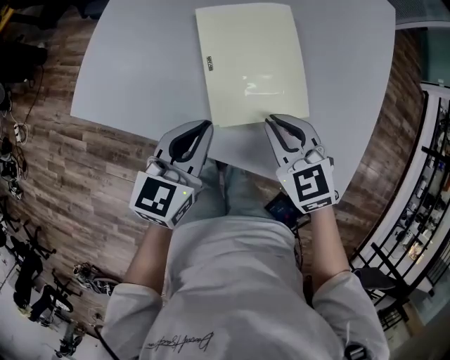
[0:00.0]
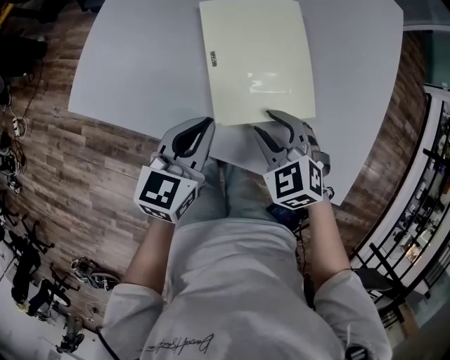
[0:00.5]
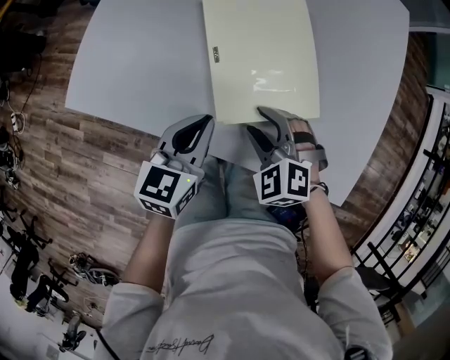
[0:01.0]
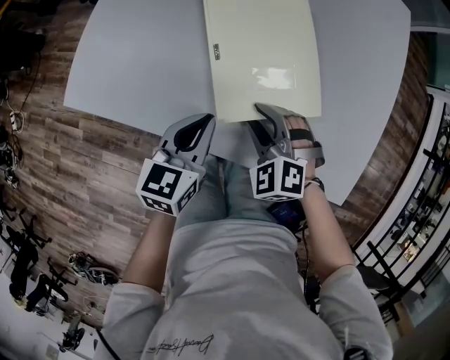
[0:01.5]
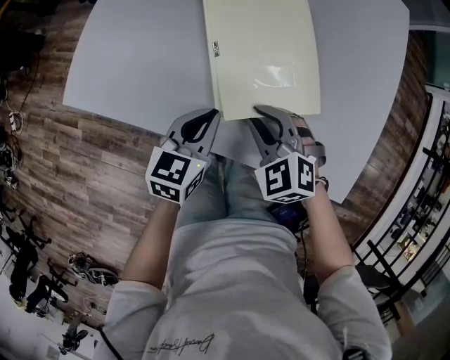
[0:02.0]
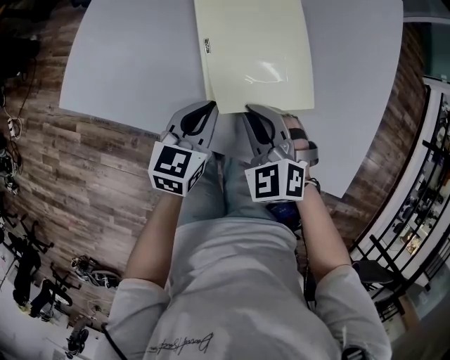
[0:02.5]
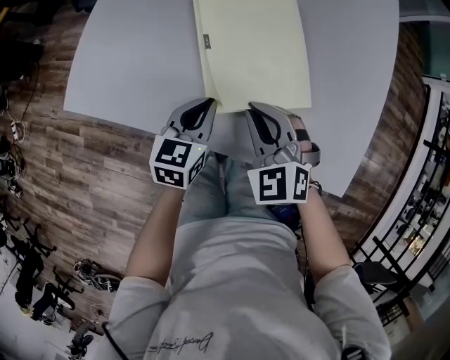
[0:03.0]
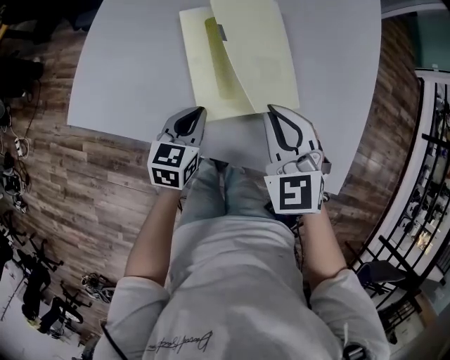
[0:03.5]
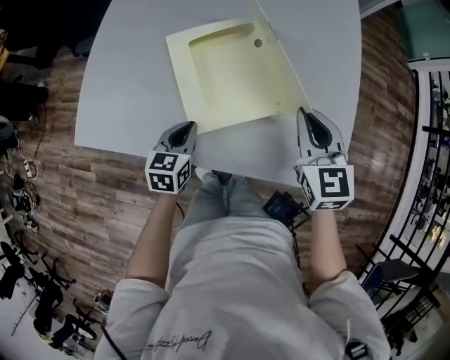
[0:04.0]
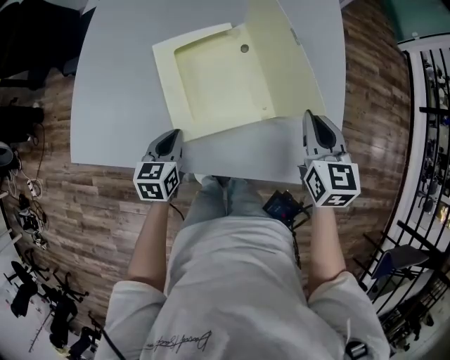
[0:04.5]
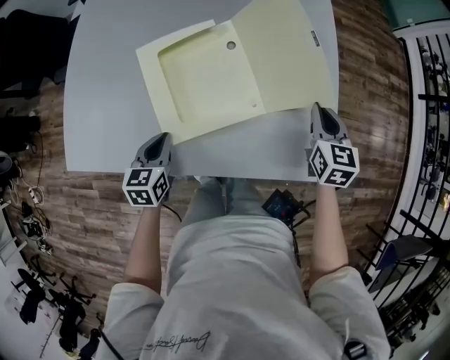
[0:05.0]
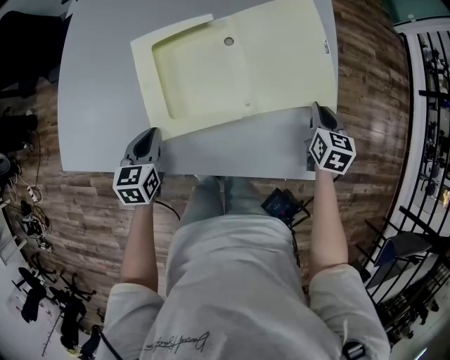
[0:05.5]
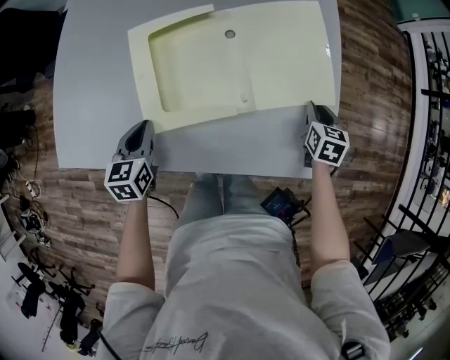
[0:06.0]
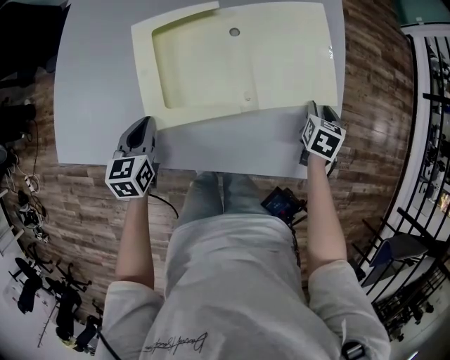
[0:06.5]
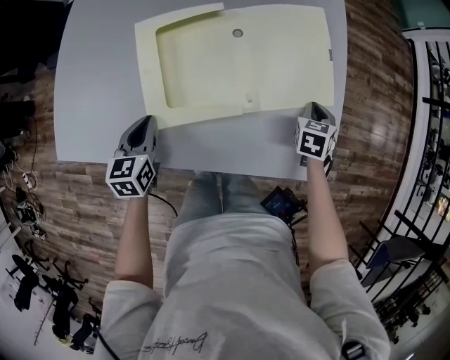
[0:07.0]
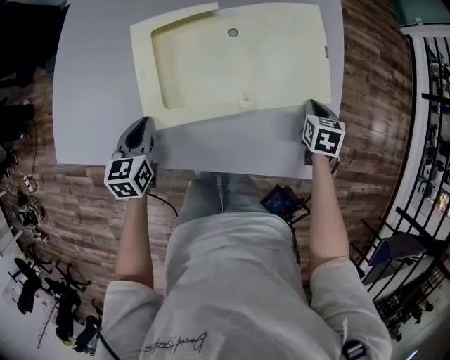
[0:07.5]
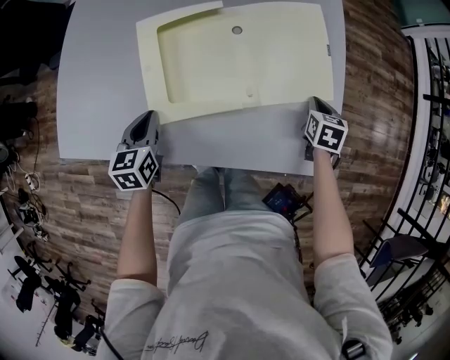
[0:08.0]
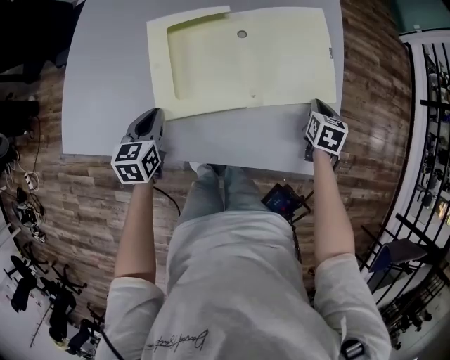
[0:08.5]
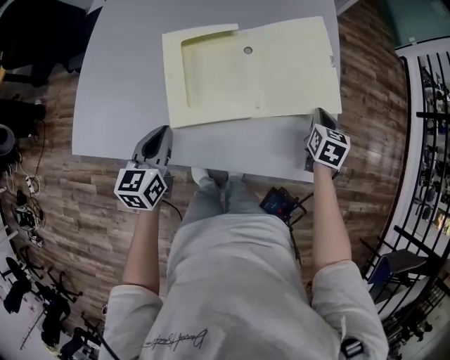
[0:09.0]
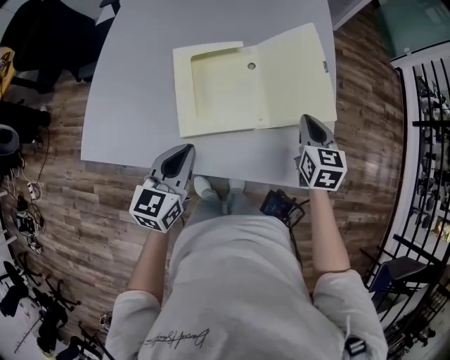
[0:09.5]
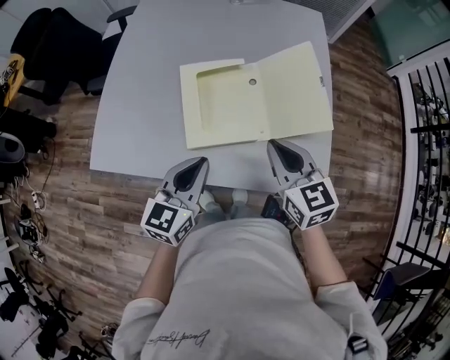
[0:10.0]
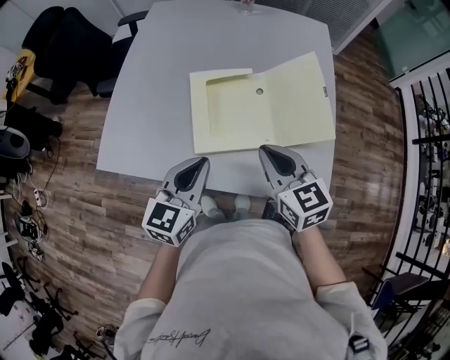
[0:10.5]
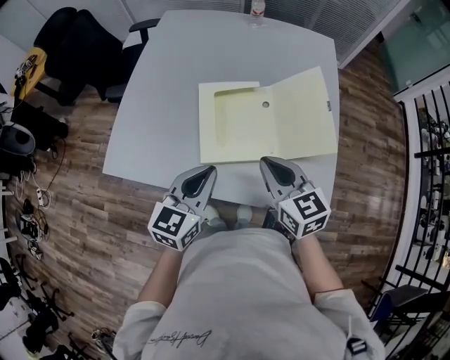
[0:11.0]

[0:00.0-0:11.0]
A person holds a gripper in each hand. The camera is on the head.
0:00.0 to 0:02.0: The grippers both shift downward by approximately 10 cm. The right gripper turns by approximately 20 degrees, and opens, then closes once more.
0:02.0 to 0:03.5: The right gripper goes roughly 10 cm upward, and swivels some 30 degrees.
0:03.5 to 0:05.5: The right gripper shifts about 30 cm to the right and downward, and rolls clockwise, seen from behind, by about 50 degrees.
0:05.5 to 0:07.5: The right gripper heads downward, covering about 5 cm, and opens, then closes again.
0:07.5 to 0:09.0: Both grippers travel together upward, roughly 10 cm.
0:09.0 to 0:11.0: The left gripper goes approximately 10 cm upward; the right gripper heads to the left and upward, covering about 30 cm, and changes its angle by some 50 degrees.

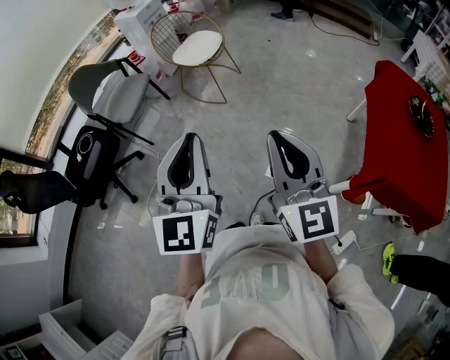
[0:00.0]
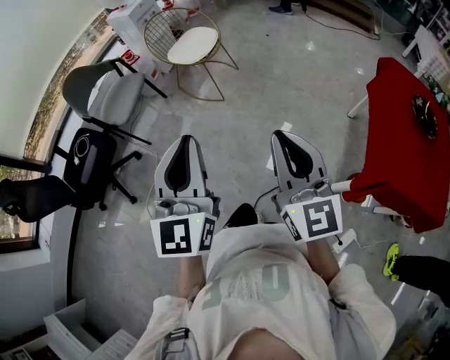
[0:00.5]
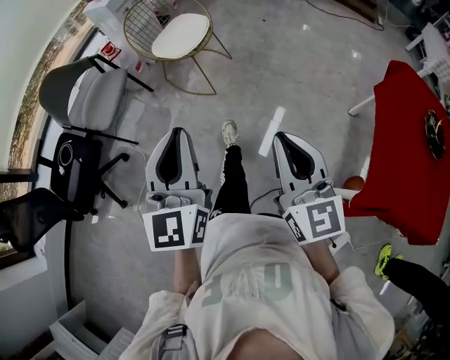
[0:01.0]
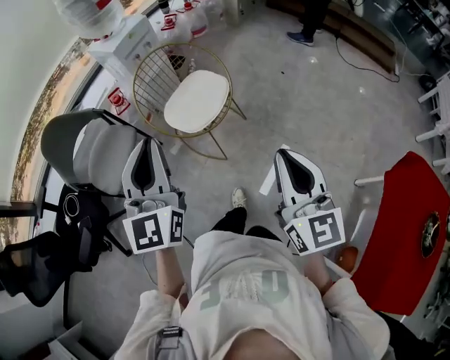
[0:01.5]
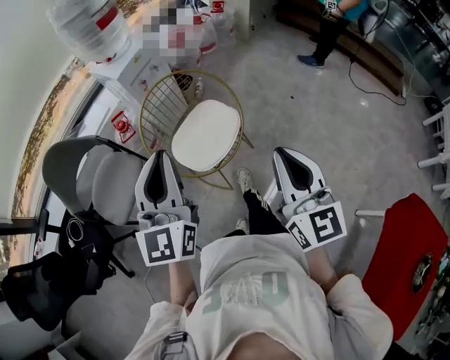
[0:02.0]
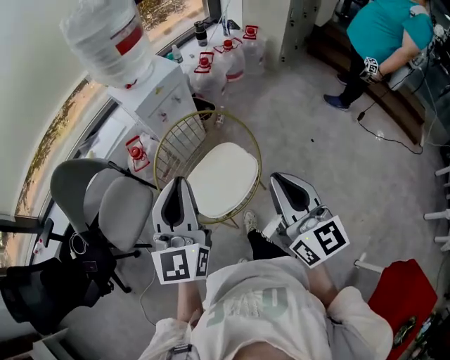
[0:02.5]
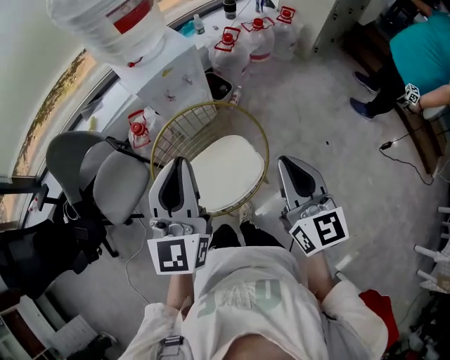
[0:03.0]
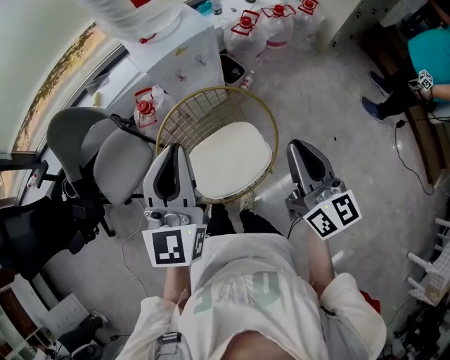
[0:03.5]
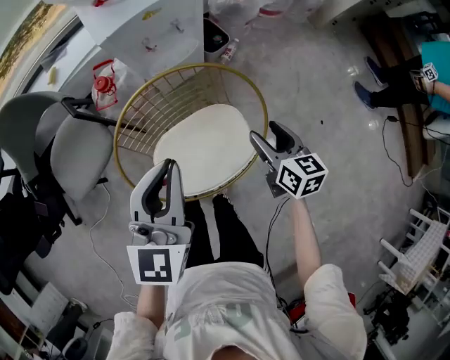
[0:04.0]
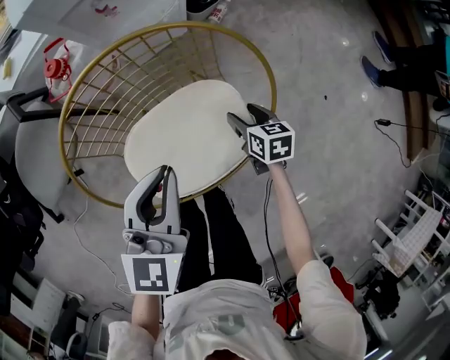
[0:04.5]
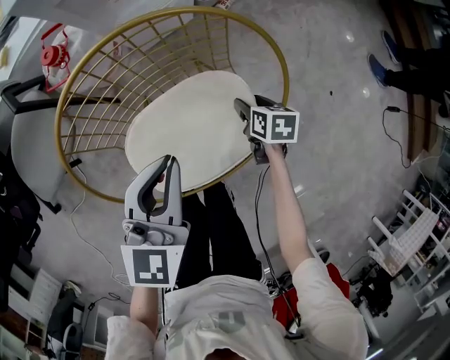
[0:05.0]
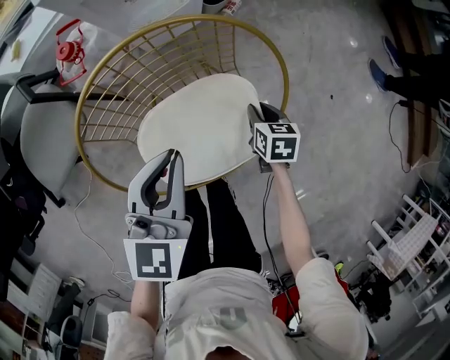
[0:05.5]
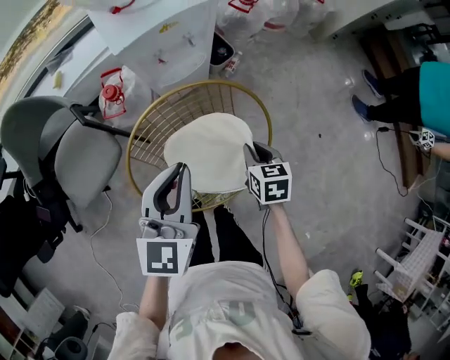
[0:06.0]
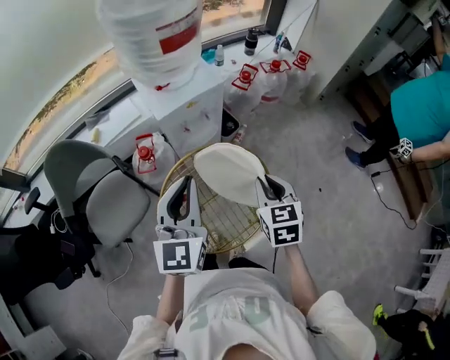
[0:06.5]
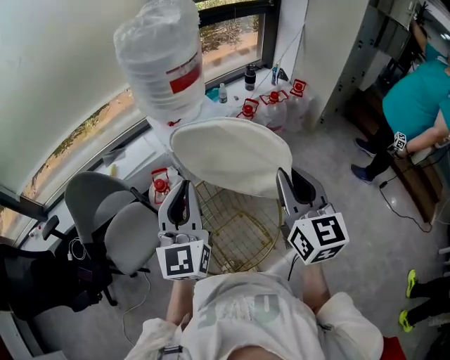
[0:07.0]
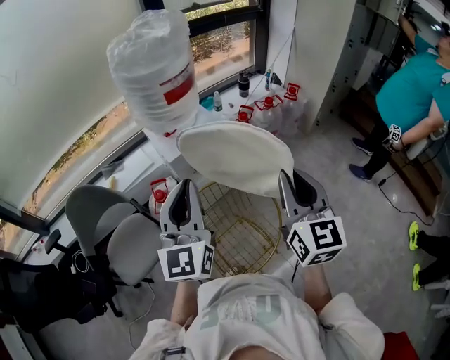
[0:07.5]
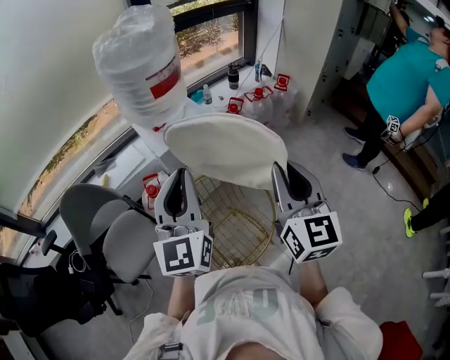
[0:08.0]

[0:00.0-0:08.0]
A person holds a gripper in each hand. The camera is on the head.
0:00.0 to 0:02.0: Both grippers are carried forward, roughly 70 cm.
0:02.0 to 0:04.0: The right gripper is displaced forward and downward by about 50 cm, tilts its fingers about 30 degrees downward, and opens; the left gripper shifts approximately 30 cm forward and downward, and swivels approximately 20 degrees.
0:04.0 to 0:06.0: The right gripper reaches approximately 30 cm downward, then returns, changes its angle by approximately 20 degrees, and closes its fingers. The left gripper travels downward and back again, approximately 20 cm each way.
0:06.0 to 0:08.0: The right gripper shifts approximately 40 cm upward, and tips its fingers upward by approximately 50 degrees. The left gripper heads upward, covering about 25 cm, and turns by approximately 30 degrees.

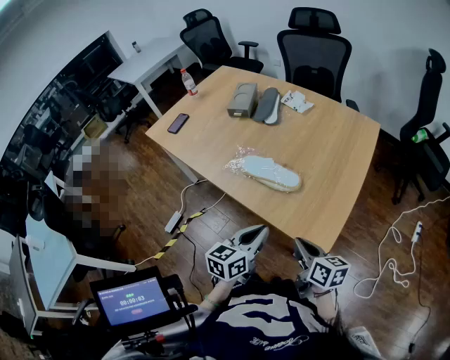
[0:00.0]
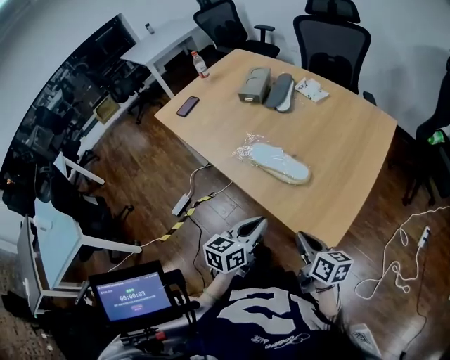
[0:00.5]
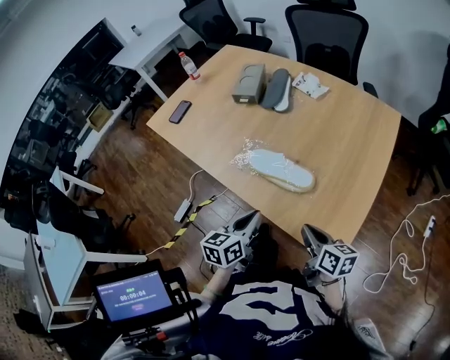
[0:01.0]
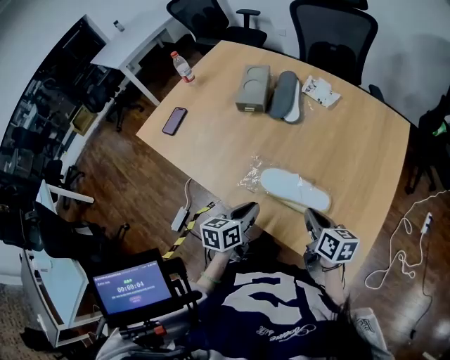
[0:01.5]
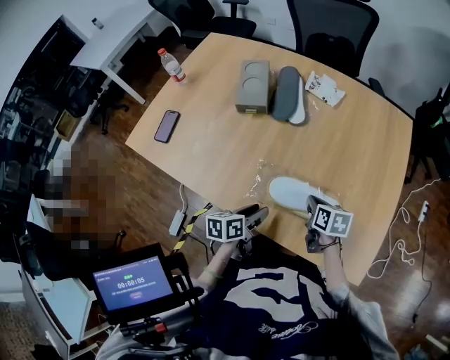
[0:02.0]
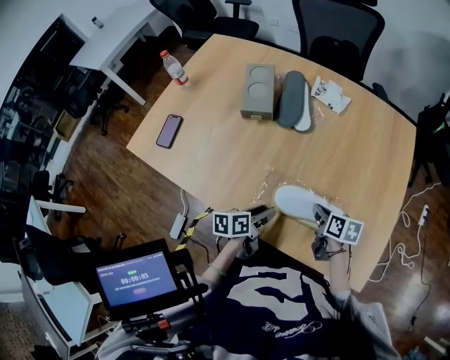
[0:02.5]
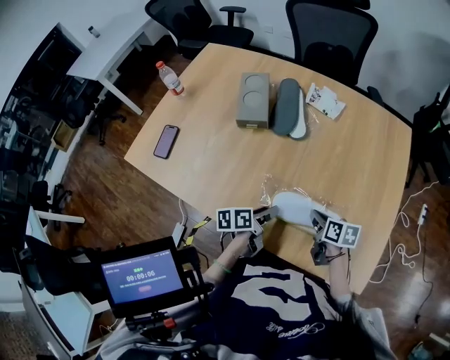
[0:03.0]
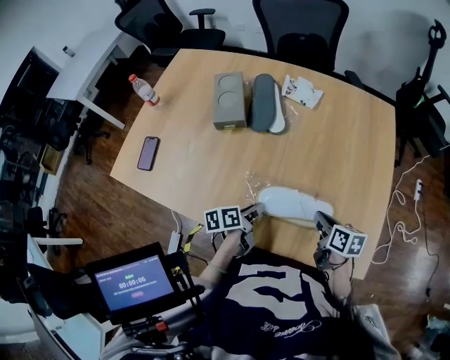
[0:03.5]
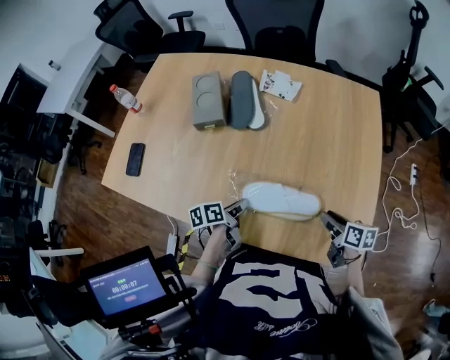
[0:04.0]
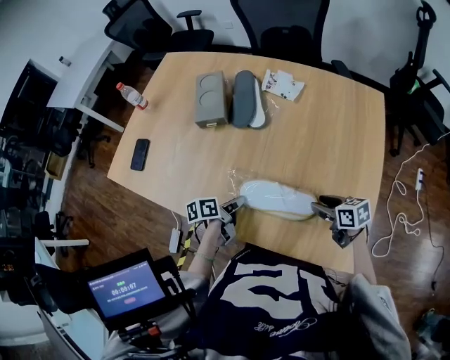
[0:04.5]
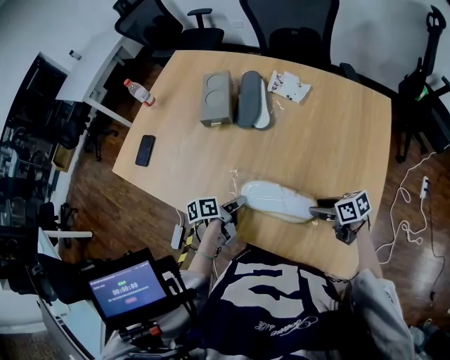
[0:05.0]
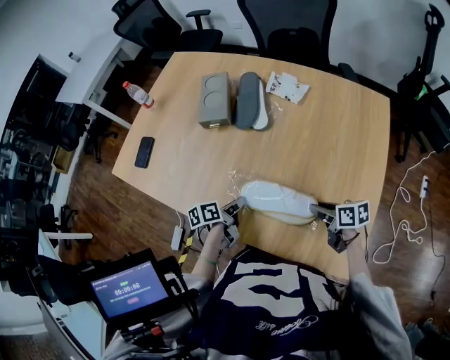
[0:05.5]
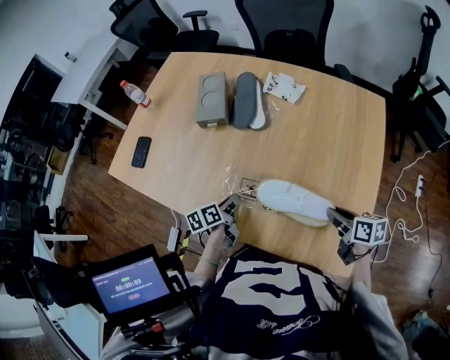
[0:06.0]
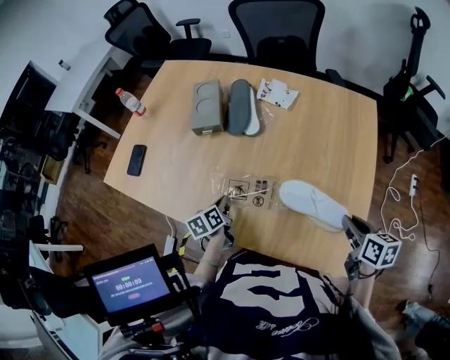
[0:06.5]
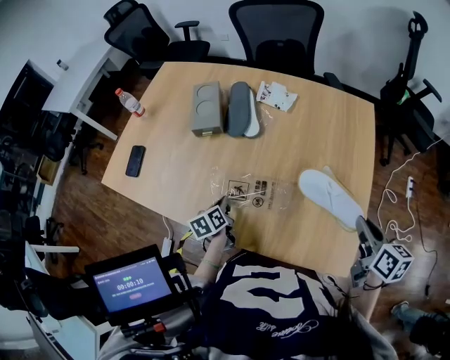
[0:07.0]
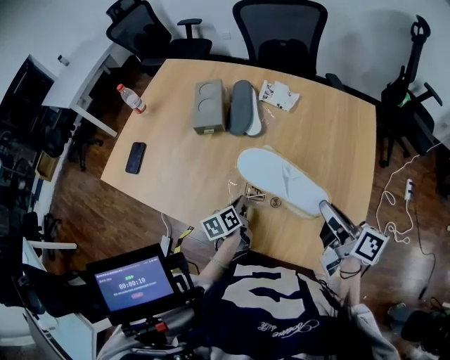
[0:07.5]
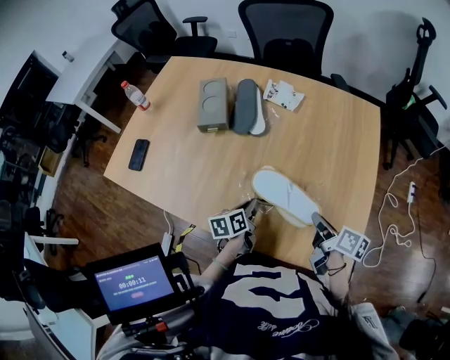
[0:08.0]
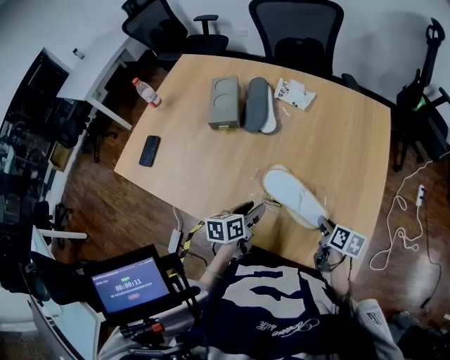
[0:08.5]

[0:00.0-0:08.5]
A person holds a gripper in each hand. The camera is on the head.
0:00.0 to 0:02.0: The right gripper heads forward, covering roughly 30 cm, and rotates about 30 degrees. The left gripper moves forward, to the left and downward, some 35 cm, swivels approximately 30 degrees, and opens.
0:02.0 to 0:04.0: The left gripper heads forward, covering about 5 cm, and closes. The right gripper goes about 15 cm to the right, and opens up.
0:04.0 to 0:06.5: The right gripper goes some 15 cm upward and to the right; the left gripper shifts by approximately 5 cm, and turns by some 30 degrees.
0:06.5 to 0:08.5: The right gripper travels downward and to the left by about 15 cm. Meanwhile the left gripper is displaced to the right by some 10 cm, changes its angle by some 20 degrees, and opens its fingers.
